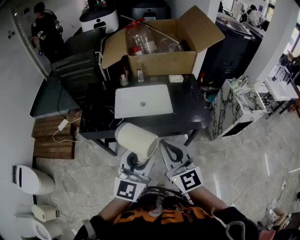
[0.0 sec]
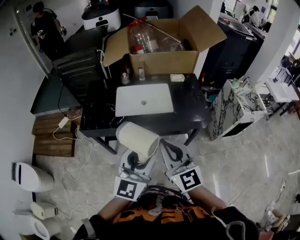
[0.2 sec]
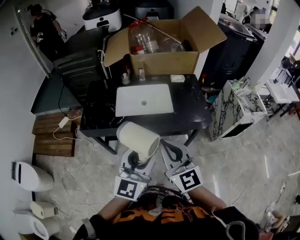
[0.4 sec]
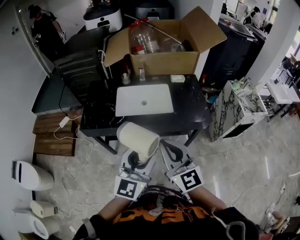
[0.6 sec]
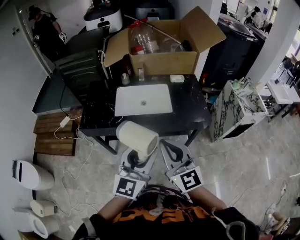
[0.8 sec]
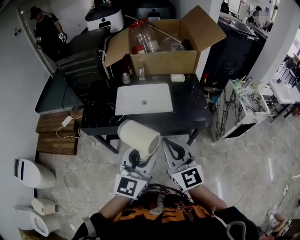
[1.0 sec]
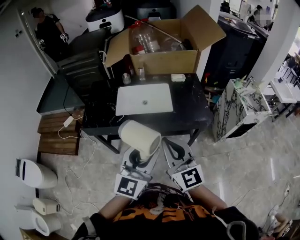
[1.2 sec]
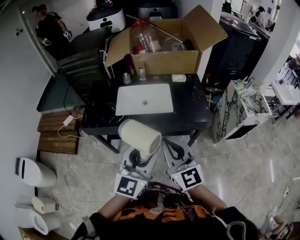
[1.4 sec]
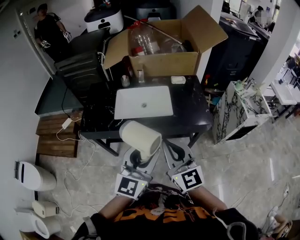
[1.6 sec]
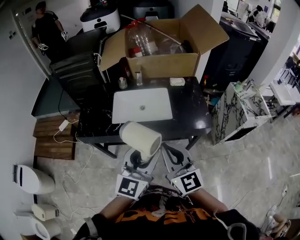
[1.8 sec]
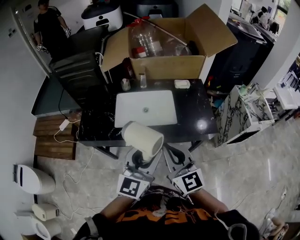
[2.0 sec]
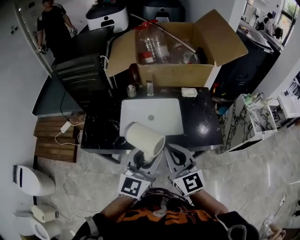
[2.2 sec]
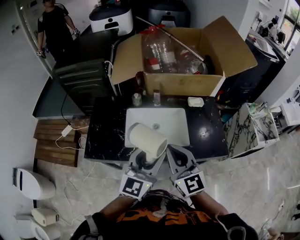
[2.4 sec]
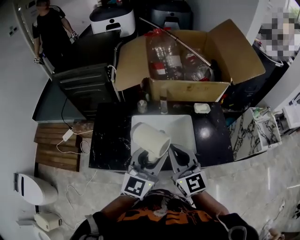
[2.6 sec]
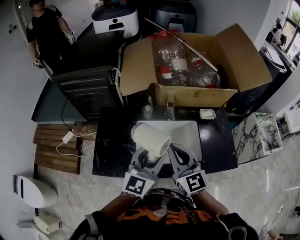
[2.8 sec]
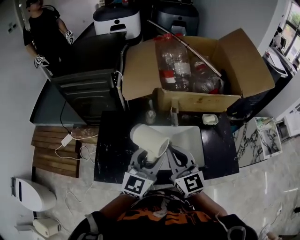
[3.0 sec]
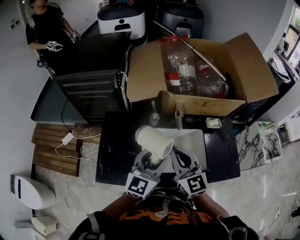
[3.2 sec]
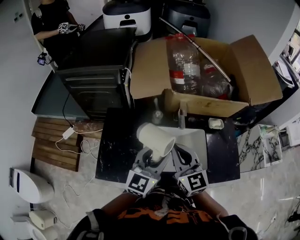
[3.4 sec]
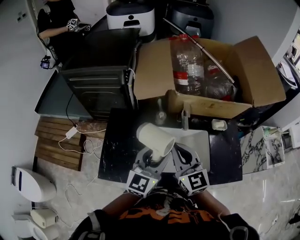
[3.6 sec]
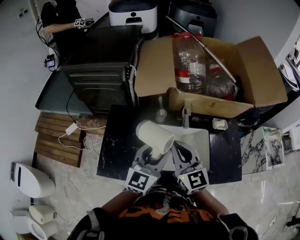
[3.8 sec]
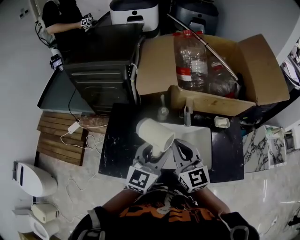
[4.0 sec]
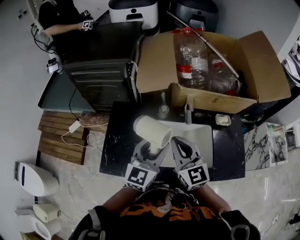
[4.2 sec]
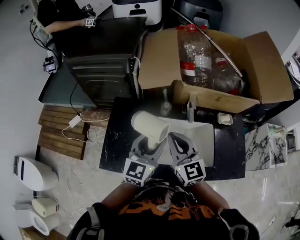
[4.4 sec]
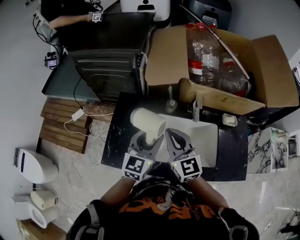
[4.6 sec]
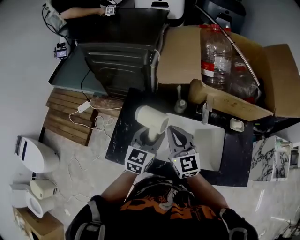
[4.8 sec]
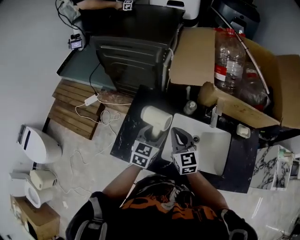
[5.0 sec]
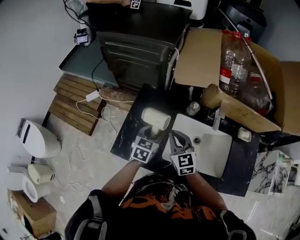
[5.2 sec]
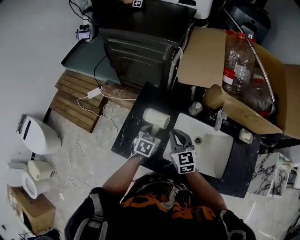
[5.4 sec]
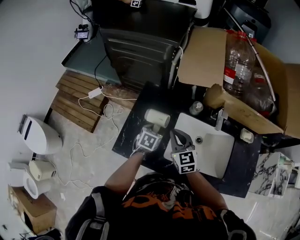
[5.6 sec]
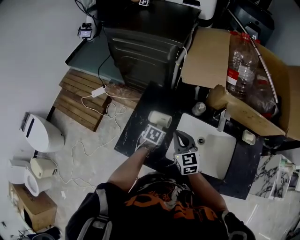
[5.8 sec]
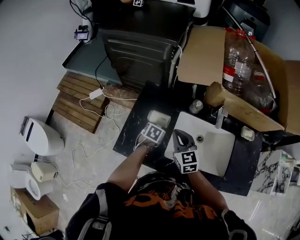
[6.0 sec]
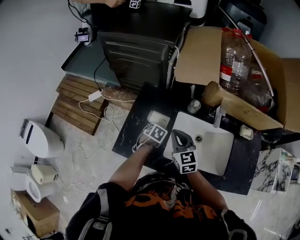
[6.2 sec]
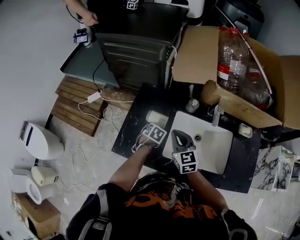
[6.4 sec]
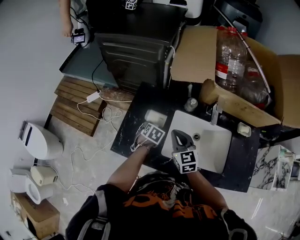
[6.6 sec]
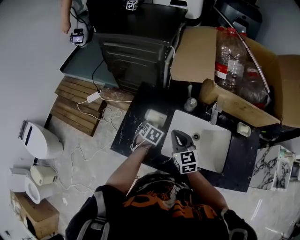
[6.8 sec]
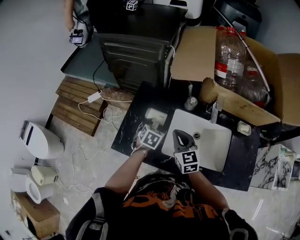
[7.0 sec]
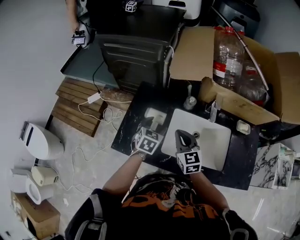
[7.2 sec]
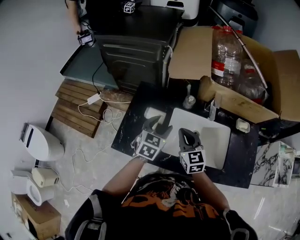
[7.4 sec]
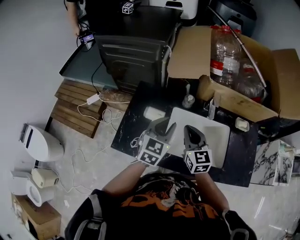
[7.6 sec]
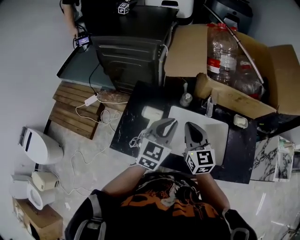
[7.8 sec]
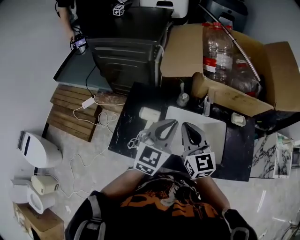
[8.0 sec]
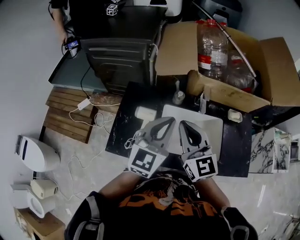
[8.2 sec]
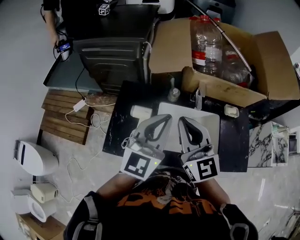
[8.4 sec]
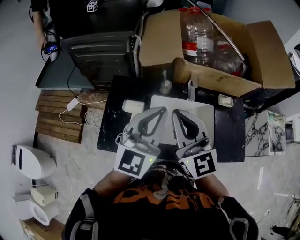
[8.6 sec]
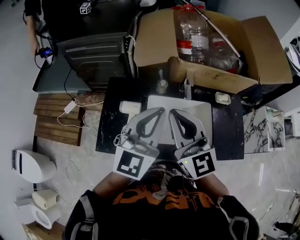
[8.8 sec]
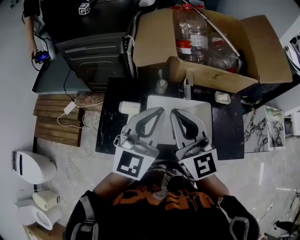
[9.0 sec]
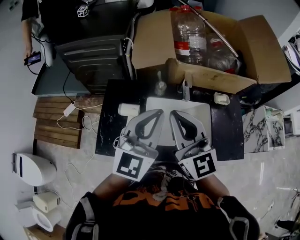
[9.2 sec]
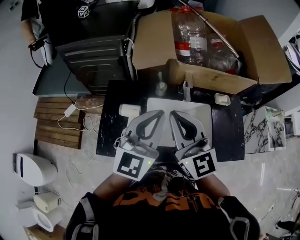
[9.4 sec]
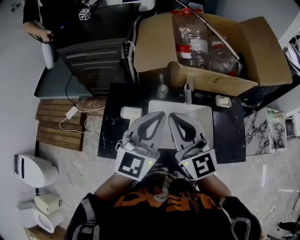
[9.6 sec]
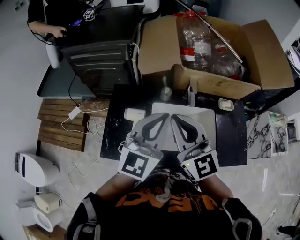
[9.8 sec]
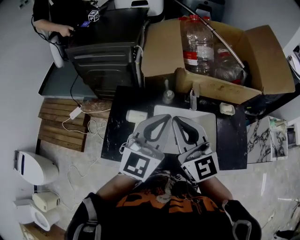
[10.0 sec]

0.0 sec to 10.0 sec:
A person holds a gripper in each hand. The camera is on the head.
0.0 sec to 1.4 sec: The left gripper heads to the right, covering about 5 cm. Meanwhile the right gripper moves approximately 5 cm.
1.4 sec to 2.8 sec: Both grippers travel together forward and to the left, some 40 cm.
2.8 sec to 4.2 sec: Both grippers travel together forward and to the left, some 10 cm.
4.2 sec to 5.8 sec: The left gripper goes some 35 cm downward and to the left, and tips its fingers downward by roughly 60 degrees; the right gripper goes about 20 cm downward and to the left, and rotates some 20 degrees.
5.8 sec to 7.2 sec: The right gripper changes place by about 5 cm. The left gripper shifts about 15 cm upward, and rotates approximately 30 degrees.
7.2 sec to 8.6 sec: Both grippers travel together upward, some 25 cm. The right gripper rotates approximately 30 degrees, while the left gripper tips its fingers upward by some 50 degrees, and closes up.
8.6 sec to 10.0 sec: The grippers move only a little.

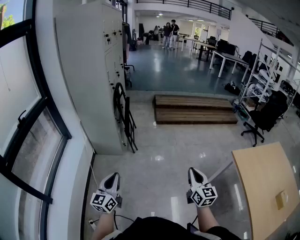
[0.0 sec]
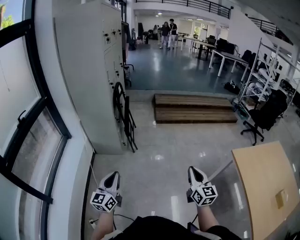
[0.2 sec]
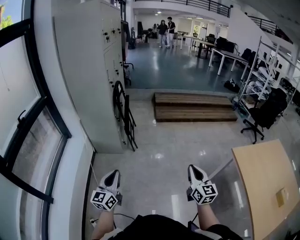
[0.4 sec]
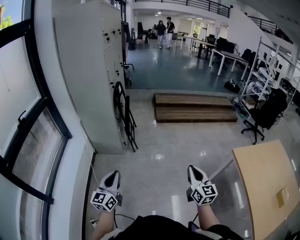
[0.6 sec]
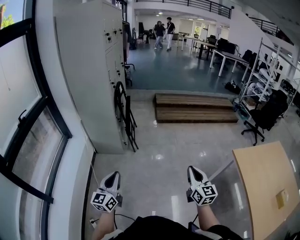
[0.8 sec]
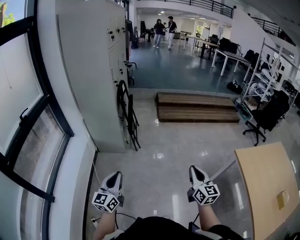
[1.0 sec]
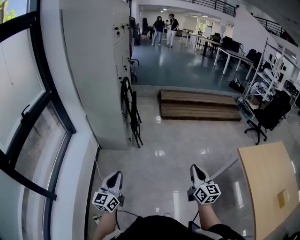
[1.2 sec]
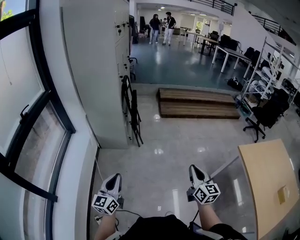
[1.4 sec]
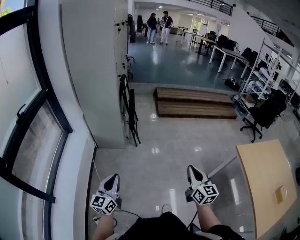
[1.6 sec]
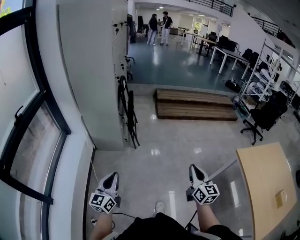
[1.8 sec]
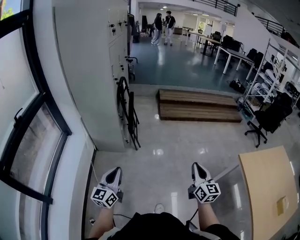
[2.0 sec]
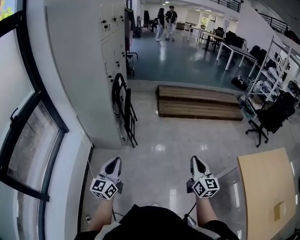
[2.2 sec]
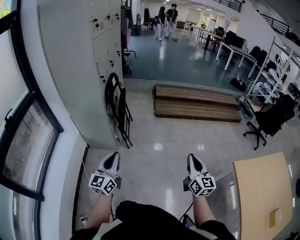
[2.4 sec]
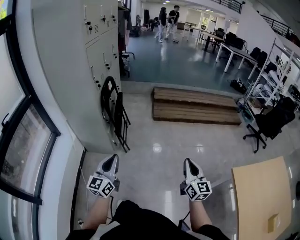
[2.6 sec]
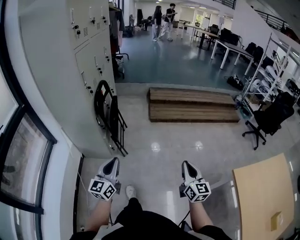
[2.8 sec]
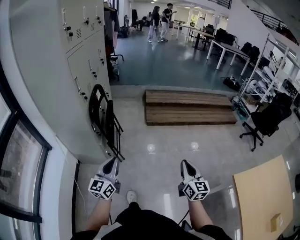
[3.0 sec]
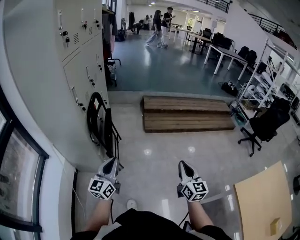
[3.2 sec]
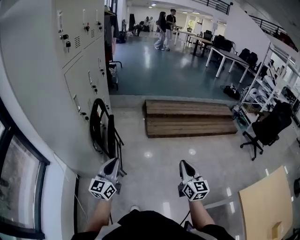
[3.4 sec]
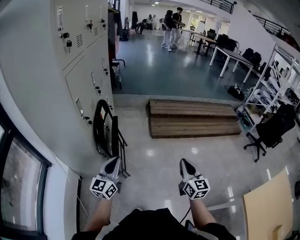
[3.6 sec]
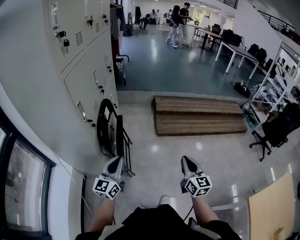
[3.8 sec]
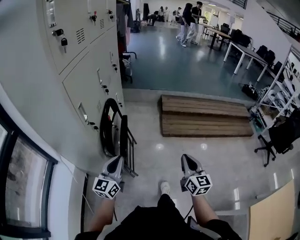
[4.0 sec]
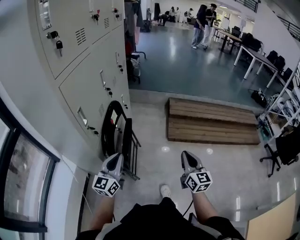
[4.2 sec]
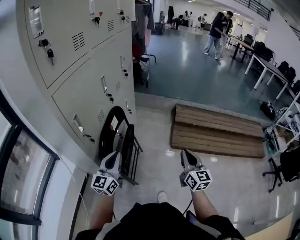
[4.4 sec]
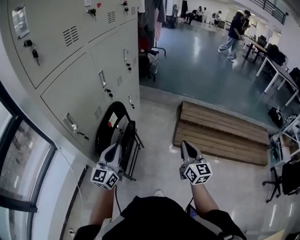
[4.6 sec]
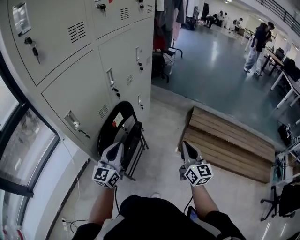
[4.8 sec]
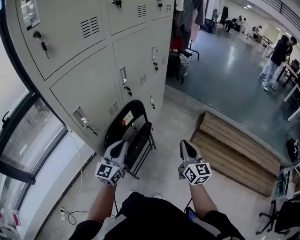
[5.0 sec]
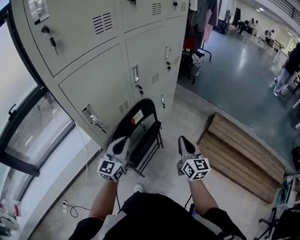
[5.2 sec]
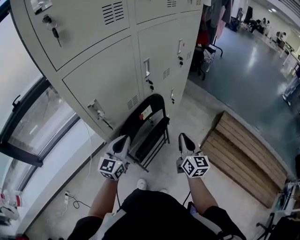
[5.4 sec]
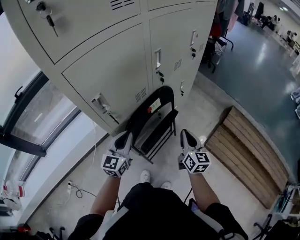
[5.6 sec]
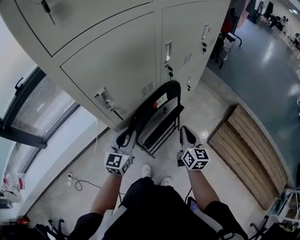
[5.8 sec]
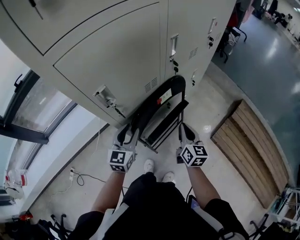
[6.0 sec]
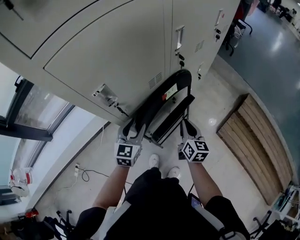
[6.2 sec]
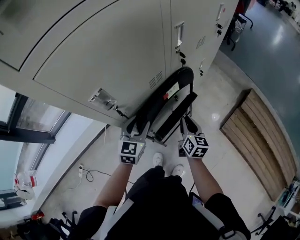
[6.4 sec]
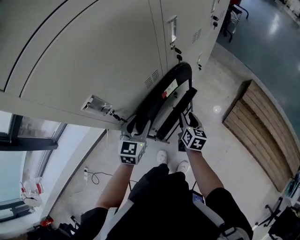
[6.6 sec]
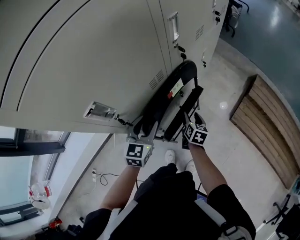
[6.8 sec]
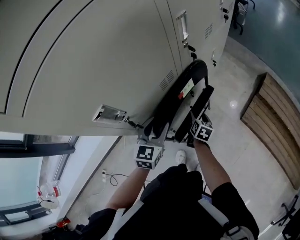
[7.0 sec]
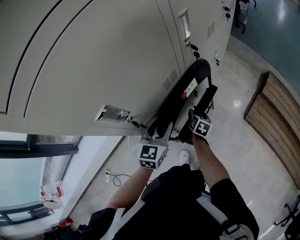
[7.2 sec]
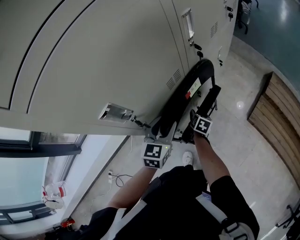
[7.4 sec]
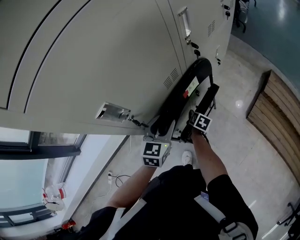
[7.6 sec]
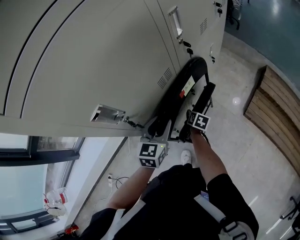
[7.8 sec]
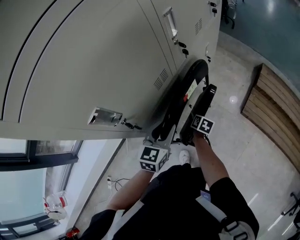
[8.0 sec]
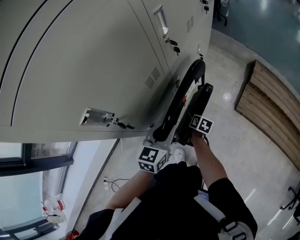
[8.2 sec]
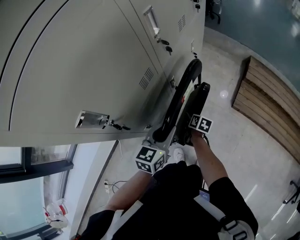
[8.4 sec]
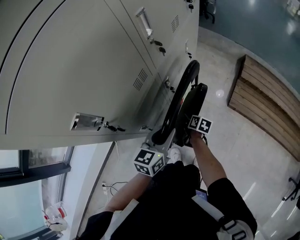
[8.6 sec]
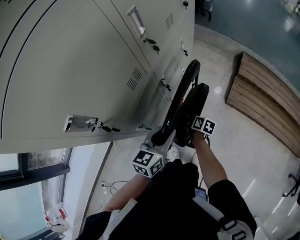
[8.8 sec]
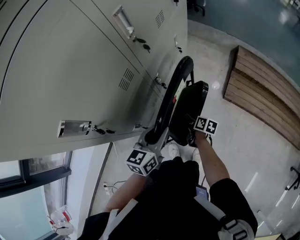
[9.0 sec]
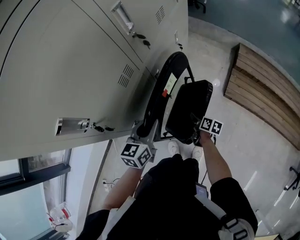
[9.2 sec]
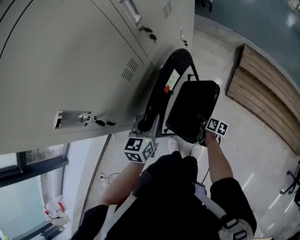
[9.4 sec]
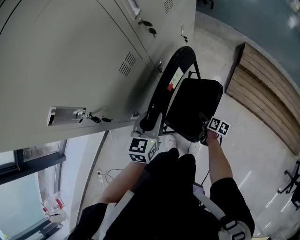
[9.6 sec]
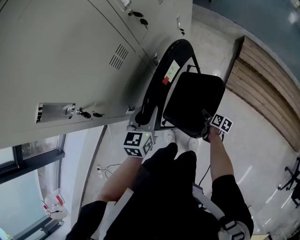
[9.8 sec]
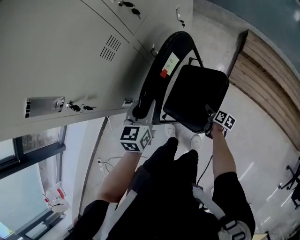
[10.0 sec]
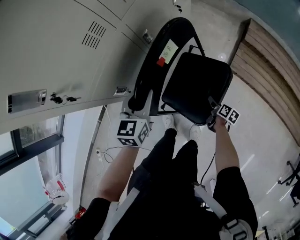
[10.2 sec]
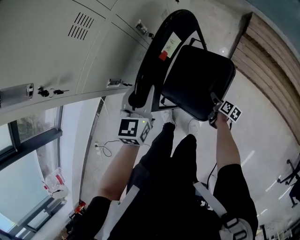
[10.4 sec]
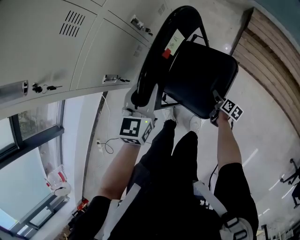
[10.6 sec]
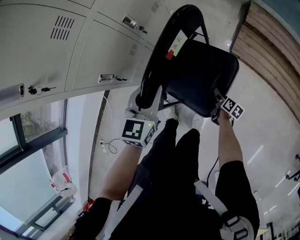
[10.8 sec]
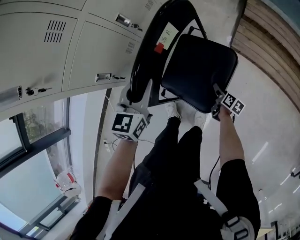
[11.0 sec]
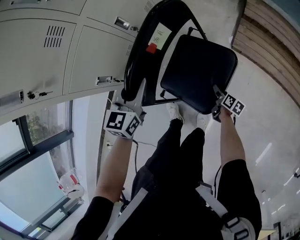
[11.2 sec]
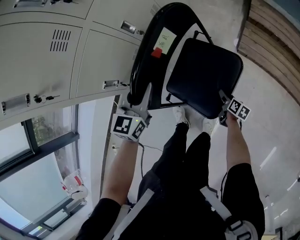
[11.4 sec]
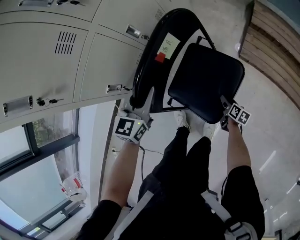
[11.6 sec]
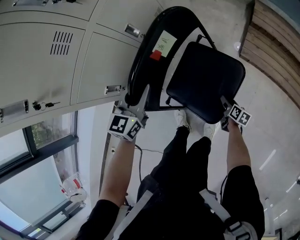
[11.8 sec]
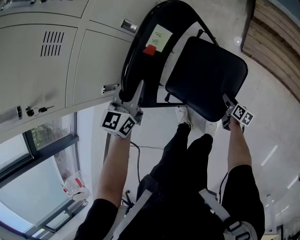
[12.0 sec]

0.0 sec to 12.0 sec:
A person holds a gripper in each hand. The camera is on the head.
0.0 sec to 1.6 sec: Both grippers travel together to the left, about 10 cm.
1.6 sec to 3.0 sec: The grippers both shift forward and to the right by approximately 40 cm.
3.0 sec to 4.4 sec: The grippers both shift forward by some 40 cm.
4.4 sec to 6.0 sec: The left gripper ends up approximately 15 cm from where it was, turns by some 40 degrees, and opens up, while the right gripper ends up about 35 cm from where it was, and turns by about 40 degrees.
6.0 sec to 7.6 sec: The left gripper travels forward by approximately 5 cm. Meanwhile the right gripper moves downward, approximately 25 cm, angles its fingers downward, by roughly 30 degrees, and opens up.
7.6 sec to 9.0 sec: The right gripper goes approximately 15 cm to the right and backward. The left gripper shifts some 10 cm to the right, turns by about 30 degrees, and closes its fingers.
9.0 sec to 10.4 sec: The left gripper heads downward, covering some 5 cm, and swivels some 20 degrees. The right gripper is displaced to the right, downward and backward by about 25 cm, and opens up.
10.4 sec to 12.0 sec: The left gripper goes to the right and returns, about 5 cm each way; the right gripper travels downward by approximately 10 cm.

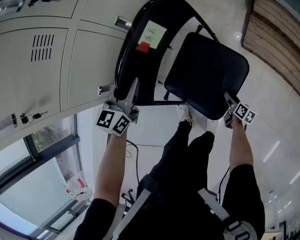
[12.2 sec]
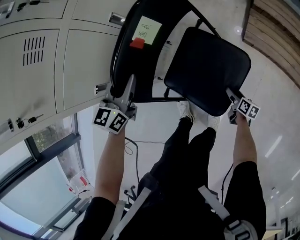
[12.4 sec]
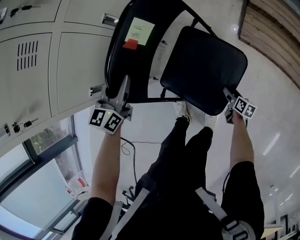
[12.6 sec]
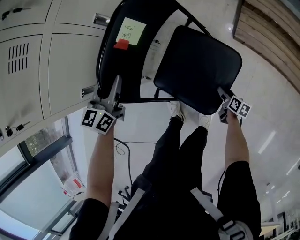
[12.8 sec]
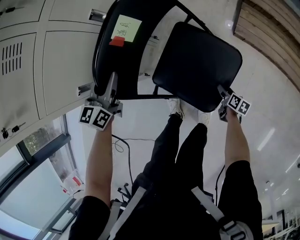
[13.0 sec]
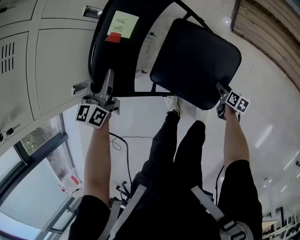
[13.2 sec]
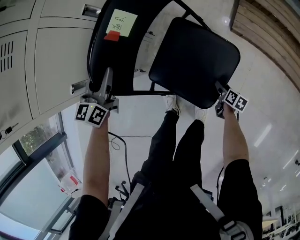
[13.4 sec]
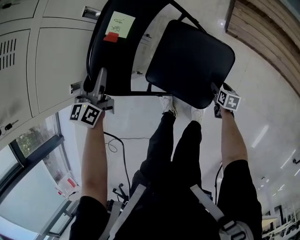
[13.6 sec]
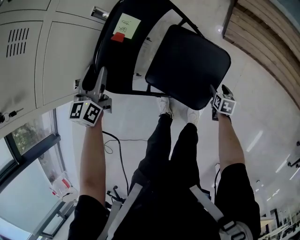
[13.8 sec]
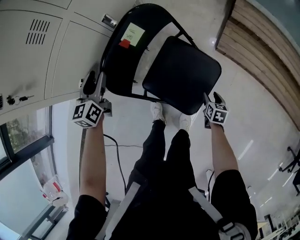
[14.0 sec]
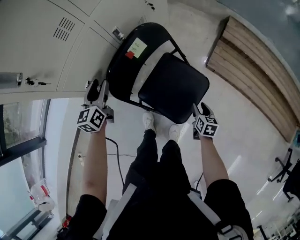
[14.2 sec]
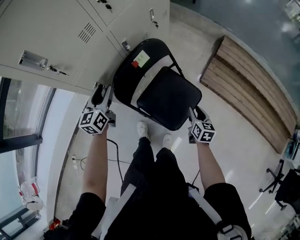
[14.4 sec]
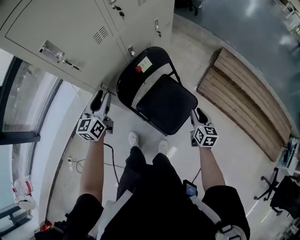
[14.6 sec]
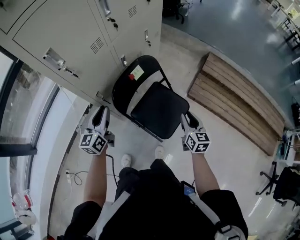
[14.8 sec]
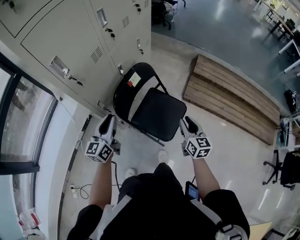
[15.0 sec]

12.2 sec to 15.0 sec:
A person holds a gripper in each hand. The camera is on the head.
12.2 sec to 13.6 sec: The left gripper changes place by approximately 5 cm, and opens its fingers. Meanwhile the right gripper swivels some 30 degrees.
13.6 sec to 15.0 sec: The right gripper moves upward, some 50 cm, tilts its fingers about 40 degrees upward, and closes; the left gripper heads upward and backward, covering some 25 cm, and closes up.
